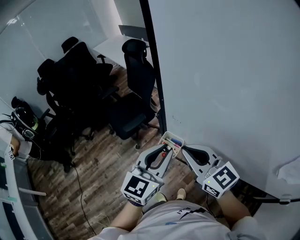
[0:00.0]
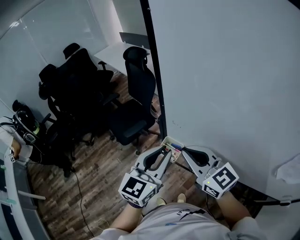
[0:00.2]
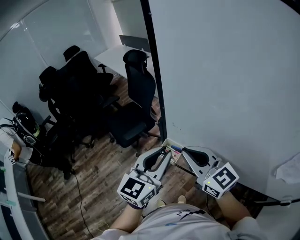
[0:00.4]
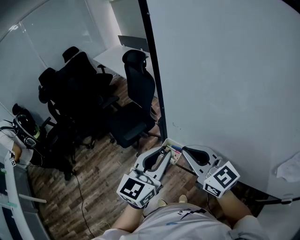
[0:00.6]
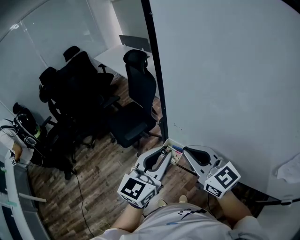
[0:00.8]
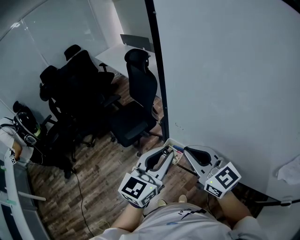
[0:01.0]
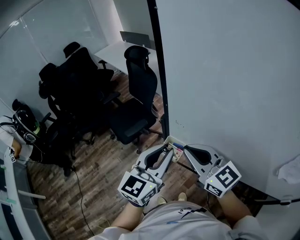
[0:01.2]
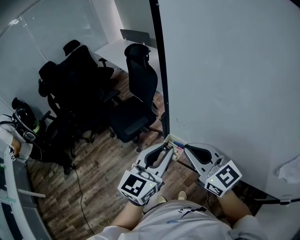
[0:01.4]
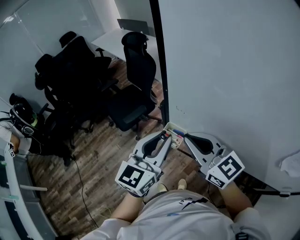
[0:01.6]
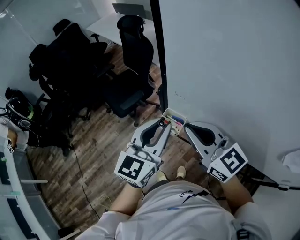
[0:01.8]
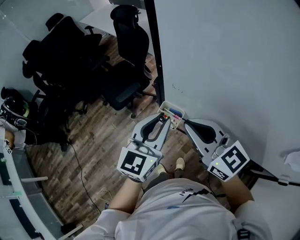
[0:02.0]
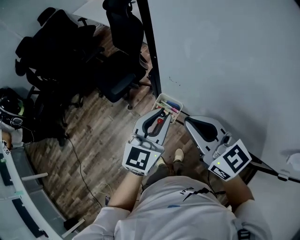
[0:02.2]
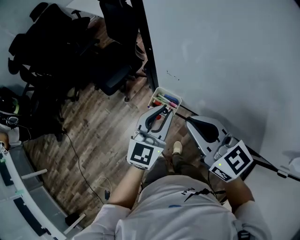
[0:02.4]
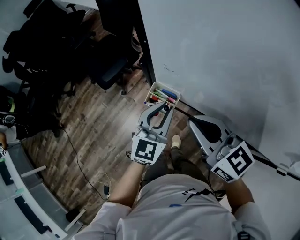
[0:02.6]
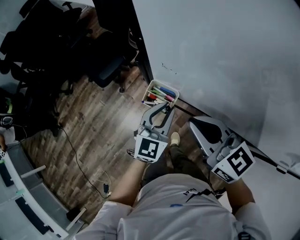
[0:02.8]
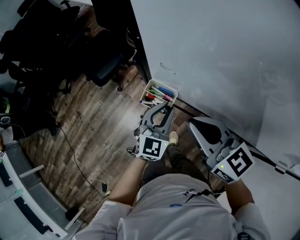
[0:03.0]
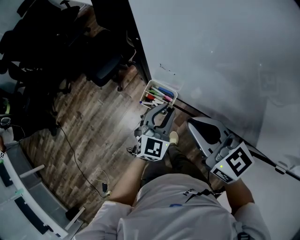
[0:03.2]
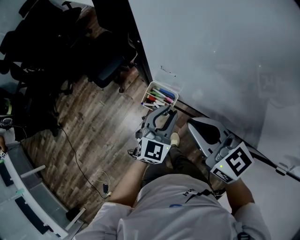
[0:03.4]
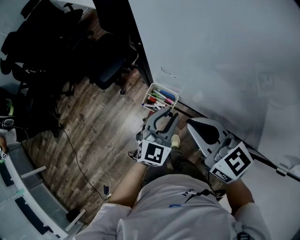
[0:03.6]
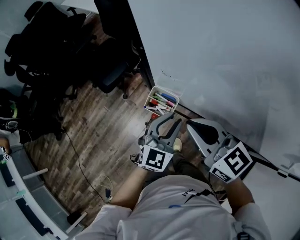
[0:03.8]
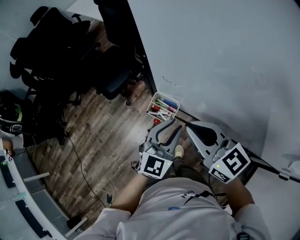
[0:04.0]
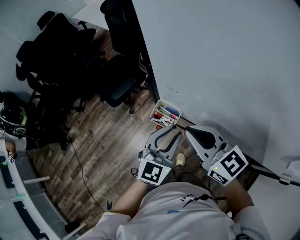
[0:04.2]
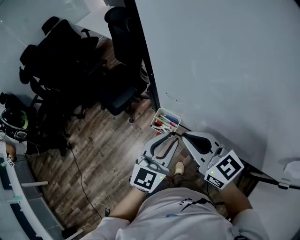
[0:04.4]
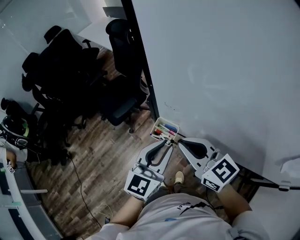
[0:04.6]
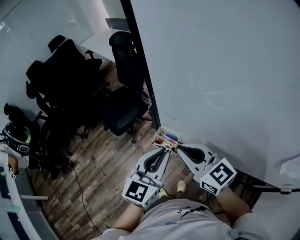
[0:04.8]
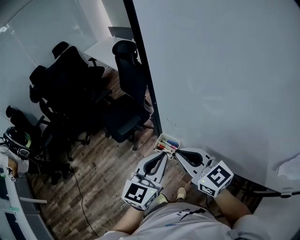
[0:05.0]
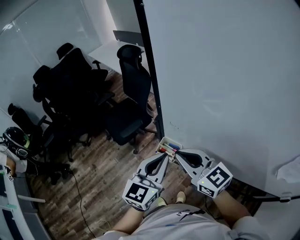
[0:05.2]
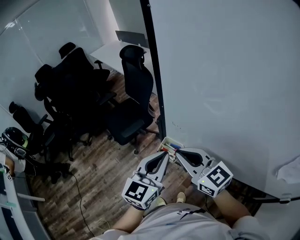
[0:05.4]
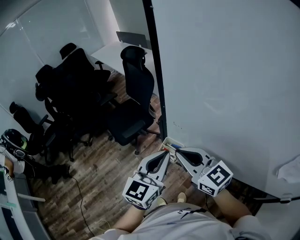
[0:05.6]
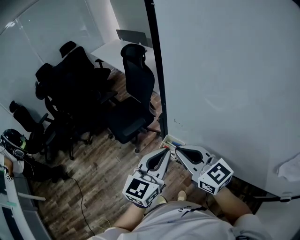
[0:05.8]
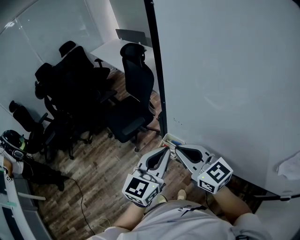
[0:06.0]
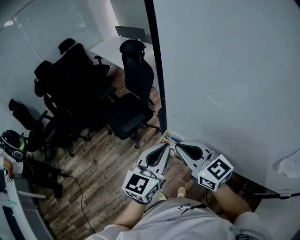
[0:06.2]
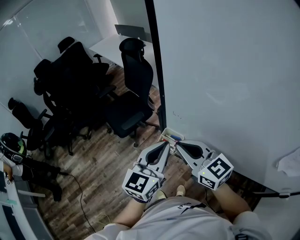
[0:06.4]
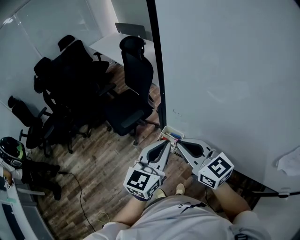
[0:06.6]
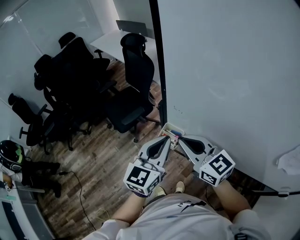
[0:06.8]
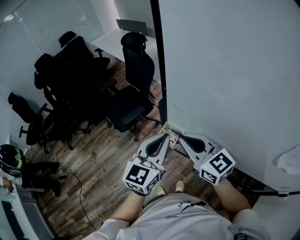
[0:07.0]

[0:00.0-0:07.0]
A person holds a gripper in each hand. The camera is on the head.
0:00.0 to 0:01.4: The grippers stay close to where they were, moving slightly.
0:01.4 to 0:02.8: The left gripper is displaced downward by approximately 20 cm. The right gripper is displaced downward by some 10 cm.
0:02.8 to 0:04.2: The left gripper moves upward, approximately 5 cm.
0:04.2 to 0:05.6: The left gripper shifts roughly 15 cm upward and to the left, and closes. Meanwhile the right gripper is displaced upward by about 5 cm.
0:05.6 to 0:07.0: The grippers stay close to where they were, moving slightly.

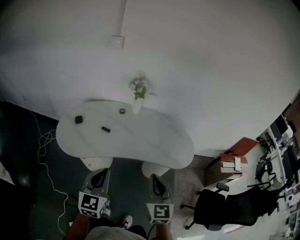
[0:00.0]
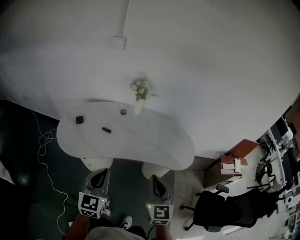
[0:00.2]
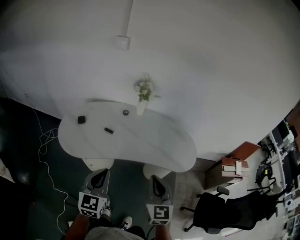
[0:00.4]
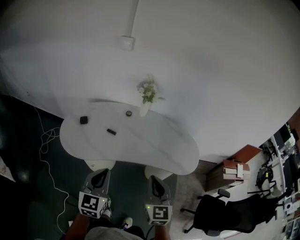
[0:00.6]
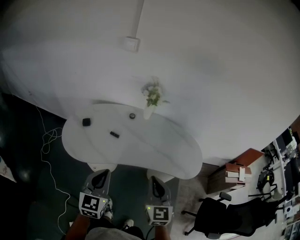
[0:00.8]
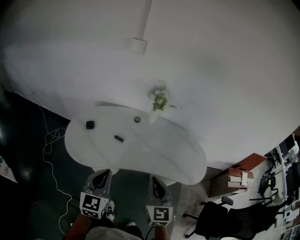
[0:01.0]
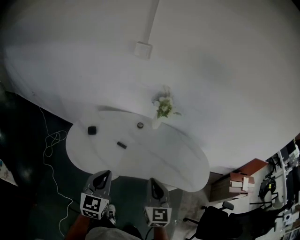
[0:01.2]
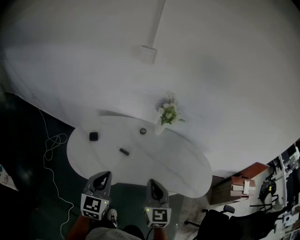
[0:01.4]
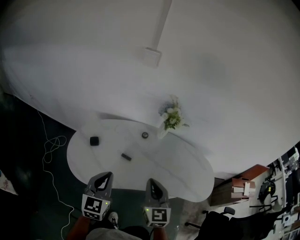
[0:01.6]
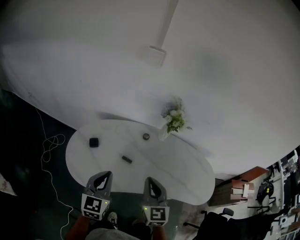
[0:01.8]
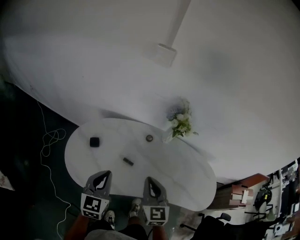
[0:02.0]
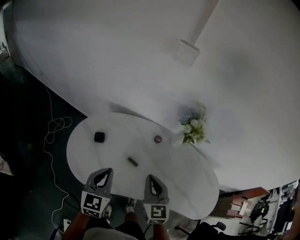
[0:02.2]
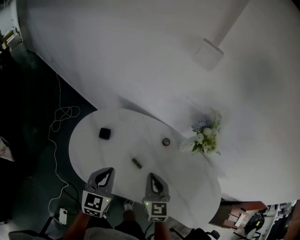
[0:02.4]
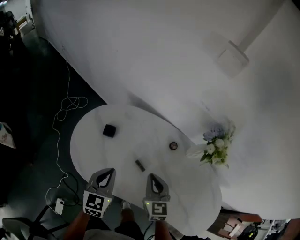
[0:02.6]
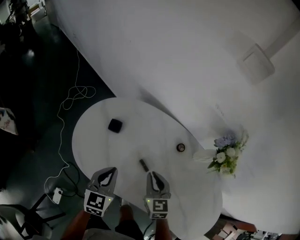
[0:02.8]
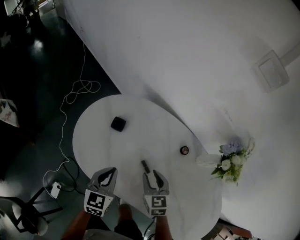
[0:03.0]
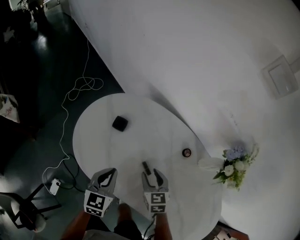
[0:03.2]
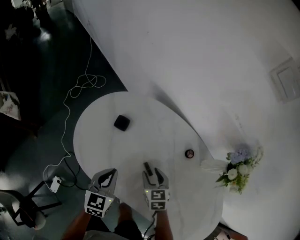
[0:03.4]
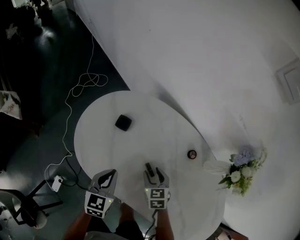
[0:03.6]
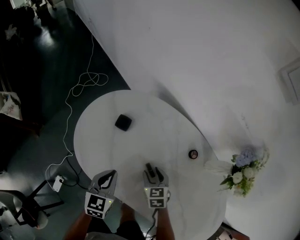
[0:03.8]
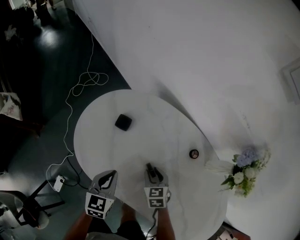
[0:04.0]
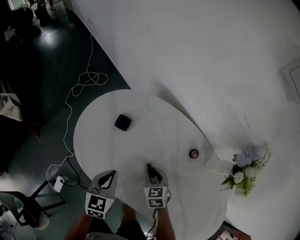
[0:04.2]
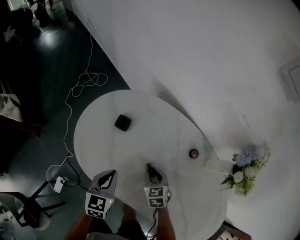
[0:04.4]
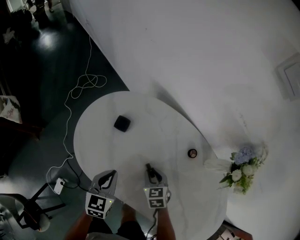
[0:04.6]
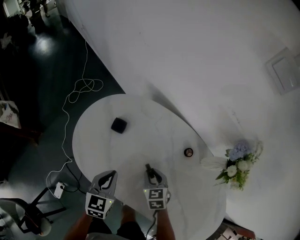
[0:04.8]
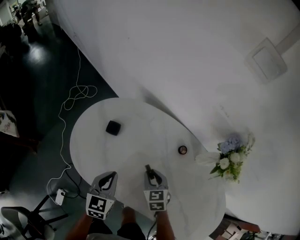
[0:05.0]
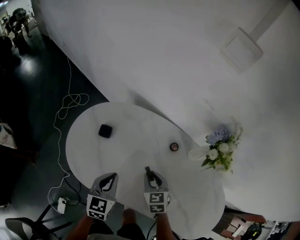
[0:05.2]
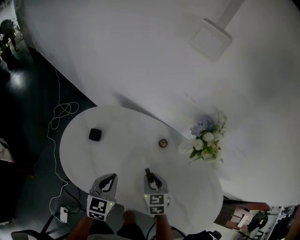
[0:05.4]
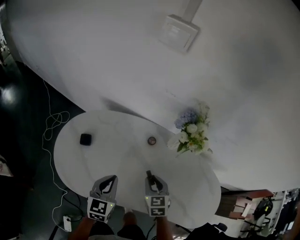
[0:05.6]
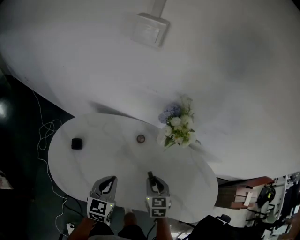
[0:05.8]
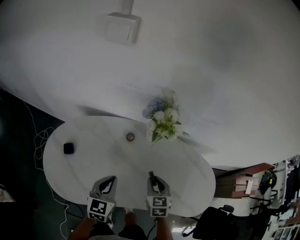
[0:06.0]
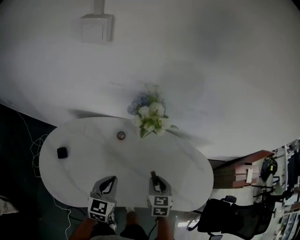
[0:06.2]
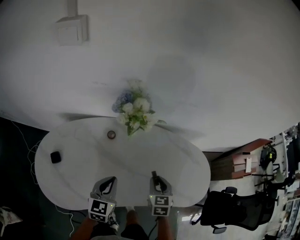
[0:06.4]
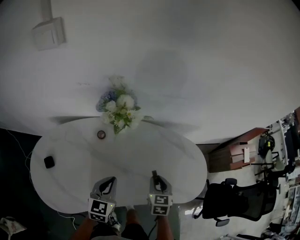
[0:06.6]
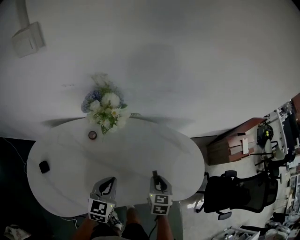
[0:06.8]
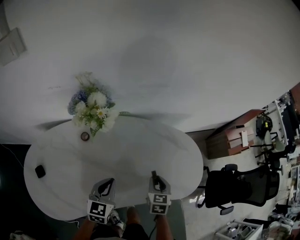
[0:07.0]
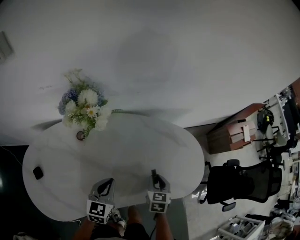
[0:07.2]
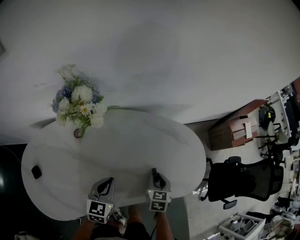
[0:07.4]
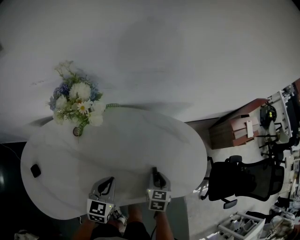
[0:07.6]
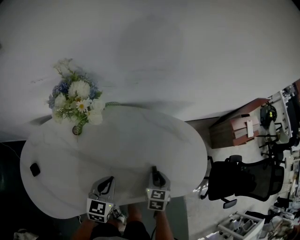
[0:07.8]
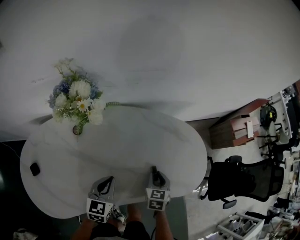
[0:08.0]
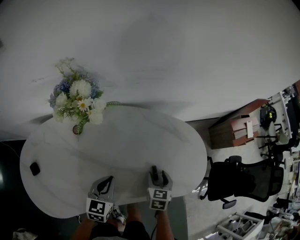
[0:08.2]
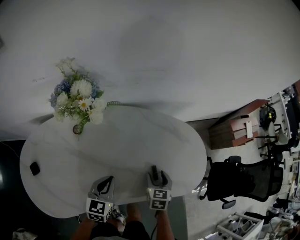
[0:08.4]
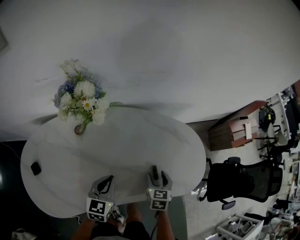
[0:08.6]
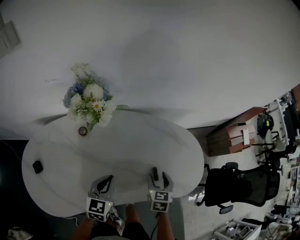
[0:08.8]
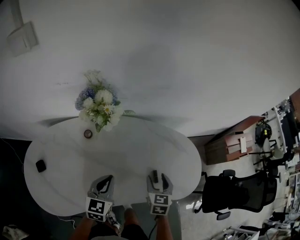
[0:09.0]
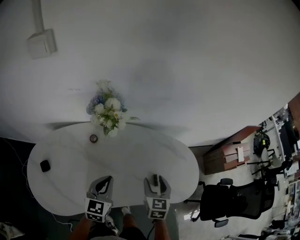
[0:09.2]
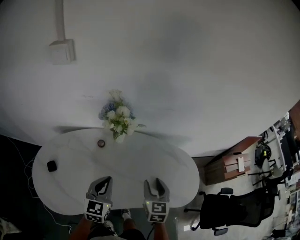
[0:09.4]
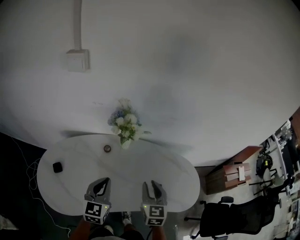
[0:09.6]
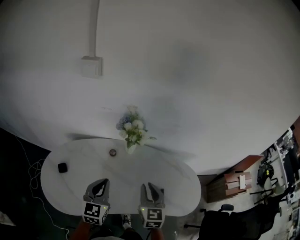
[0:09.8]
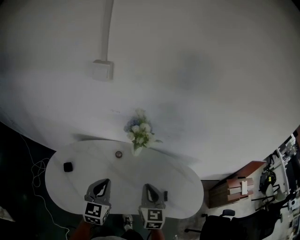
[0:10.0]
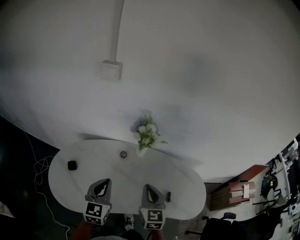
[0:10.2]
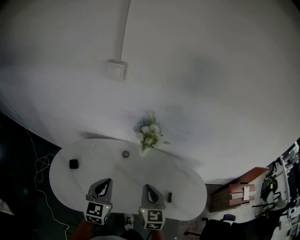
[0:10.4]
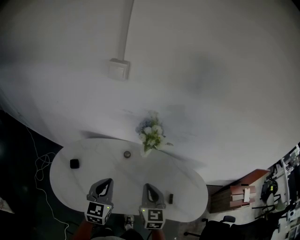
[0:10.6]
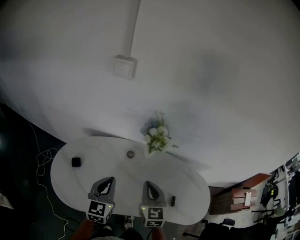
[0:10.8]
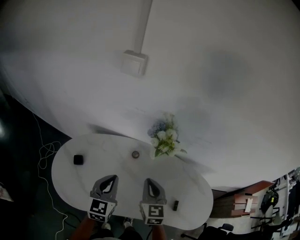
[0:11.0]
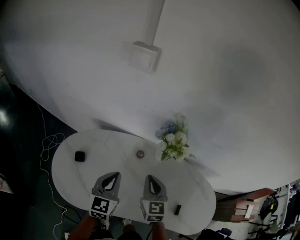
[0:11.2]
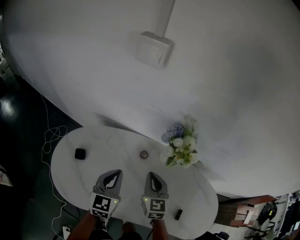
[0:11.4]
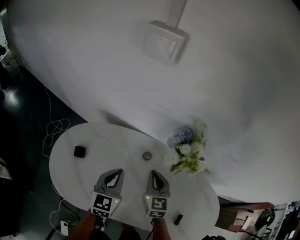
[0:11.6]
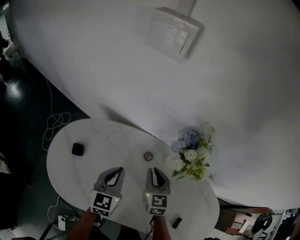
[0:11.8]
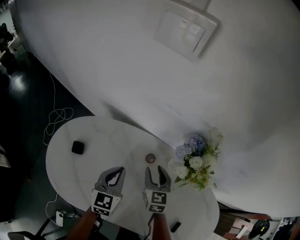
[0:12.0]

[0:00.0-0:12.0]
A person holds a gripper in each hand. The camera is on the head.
0:00.0 to 0:01.6: Both grippers move forward and to the left, roughly 25 cm.
0:01.6 to 0:03.0: The two grippers go some 20 cm downward. The right gripper rotates approximately 50 degrees, and opens. The left gripper swivels some 30 degrees.
0:03.0 to 0:04.4: The right gripper is displaced downward by approximately 10 cm. Meanwhile the left gripper moves downward, approximately 5 cm.
0:04.4 to 0:06.0: The right gripper moves roughly 30 cm, and swivels roughly 50 degrees, while the left gripper moves some 25 cm, and swivels approximately 40 degrees.
0:06.0 to 0:07.6: The left gripper shifts by some 20 cm, and changes its angle by some 20 degrees. Meanwhile the right gripper moves roughly 25 cm, and turns by roughly 30 degrees.
0:07.6 to 0:09.0: The grippers both shift upward by some 10 cm. The right gripper opens its fingers.
0:09.0 to 0:10.4: The grippers both shift upward and to the left by about 25 cm. The right gripper rotates some 30 degrees, and closes up. Meanwhile the left gripper swivels approximately 30 degrees.
0:10.4 to 0:12.0: Both grippers move forward and downward, roughly 25 cm. The right gripper rotates some 20 degrees, and opens its fingers.

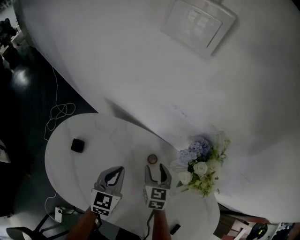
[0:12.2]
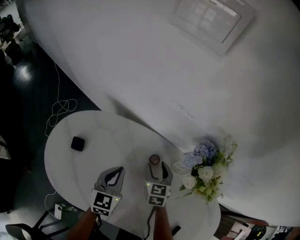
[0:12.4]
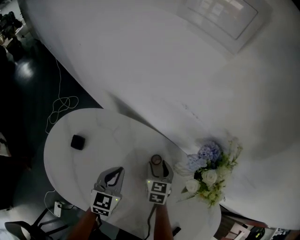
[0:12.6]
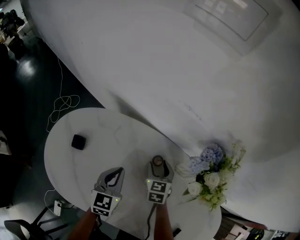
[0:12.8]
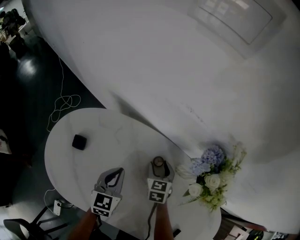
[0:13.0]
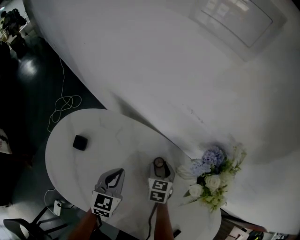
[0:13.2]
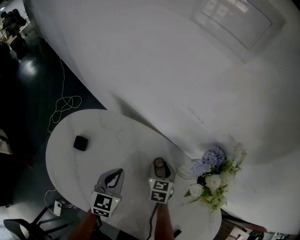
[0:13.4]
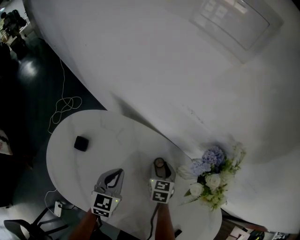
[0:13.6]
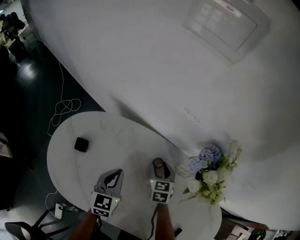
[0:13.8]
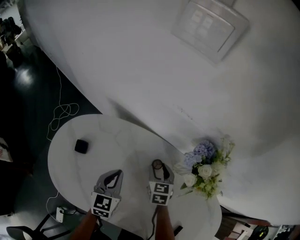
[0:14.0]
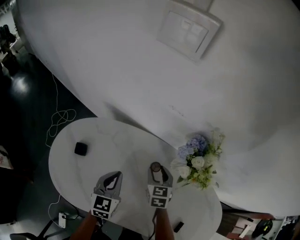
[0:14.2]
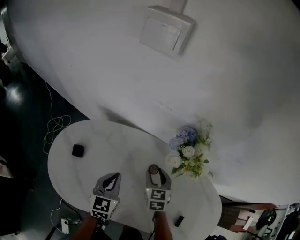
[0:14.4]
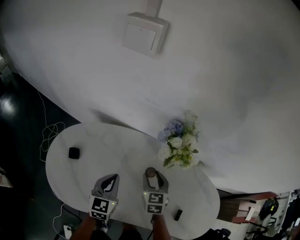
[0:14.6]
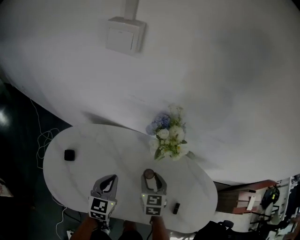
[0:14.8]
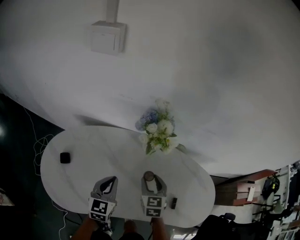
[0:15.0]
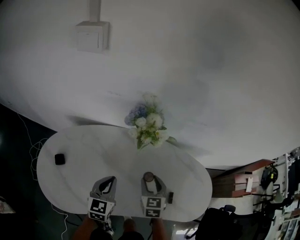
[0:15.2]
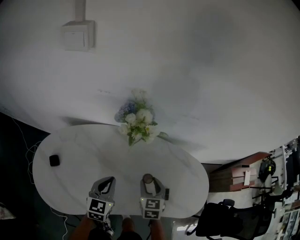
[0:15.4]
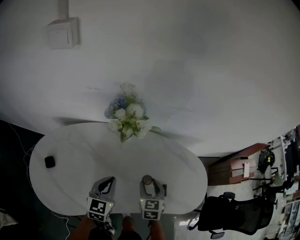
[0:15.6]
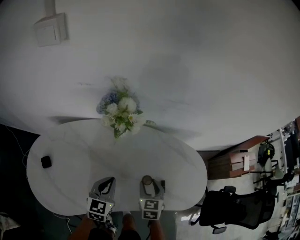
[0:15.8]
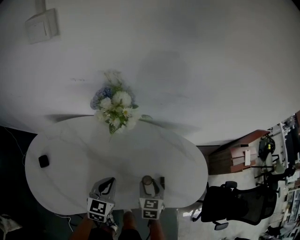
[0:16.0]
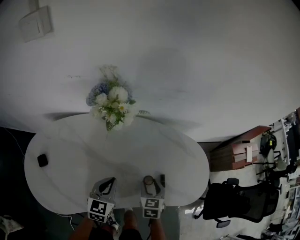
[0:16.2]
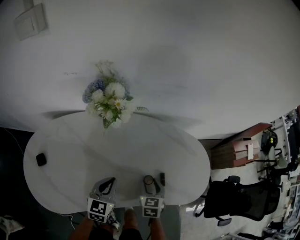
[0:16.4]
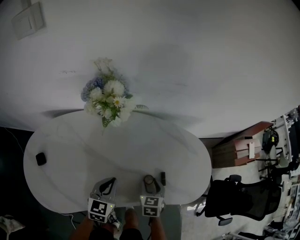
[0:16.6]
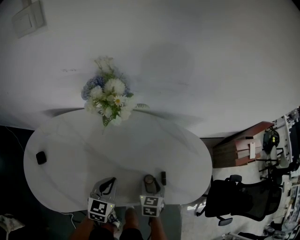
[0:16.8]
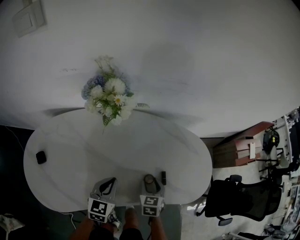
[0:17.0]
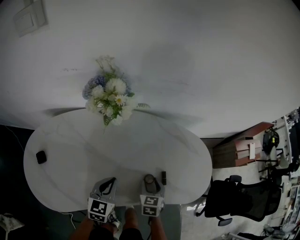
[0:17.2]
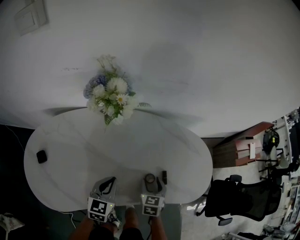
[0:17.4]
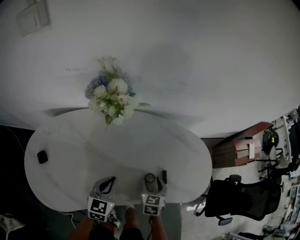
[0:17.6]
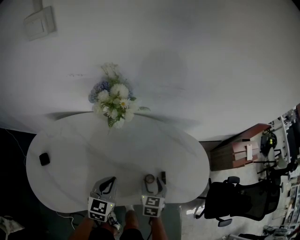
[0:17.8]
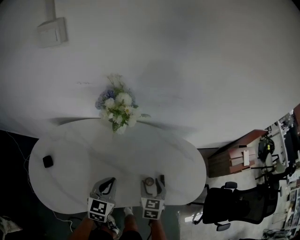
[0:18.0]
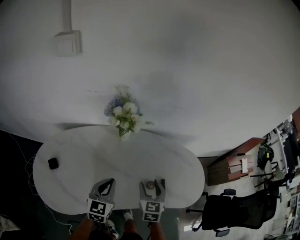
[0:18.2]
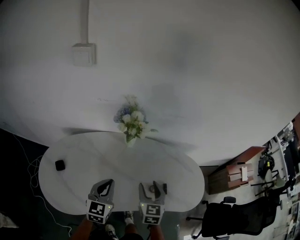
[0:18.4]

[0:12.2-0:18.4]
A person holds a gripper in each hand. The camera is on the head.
0:12.2 to 0:13.8: The right gripper is displaced downward by approximately 5 cm.
0:13.8 to 0:15.4: The left gripper moves about 20 cm, and changes its angle by roughly 30 degrees; the right gripper shifts by approximately 30 cm, and turns by about 30 degrees.
0:15.4 to 0:16.8: The left gripper heads downward and to the right, covering roughly 10 cm, while the right gripper moves downward, to the right and backward, about 15 cm.
0:16.8 to 0:18.4: The right gripper heads upward, covering approximately 20 cm, and changes its angle by some 20 degrees; the left gripper is displaced upward and to the left by roughly 15 cm.
